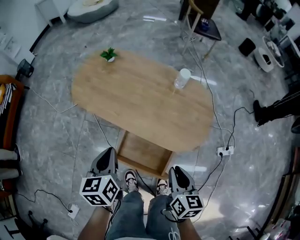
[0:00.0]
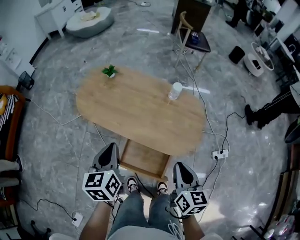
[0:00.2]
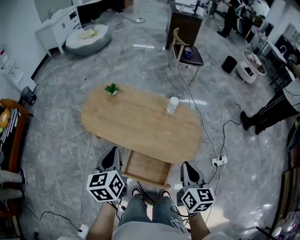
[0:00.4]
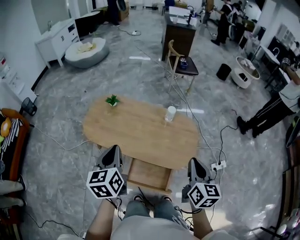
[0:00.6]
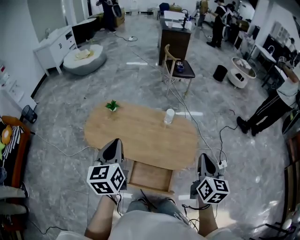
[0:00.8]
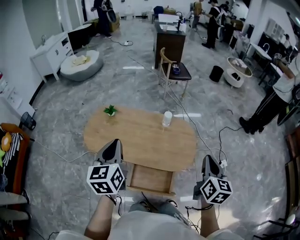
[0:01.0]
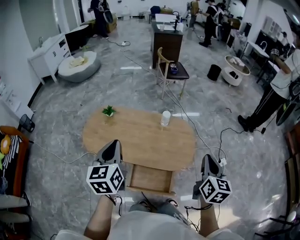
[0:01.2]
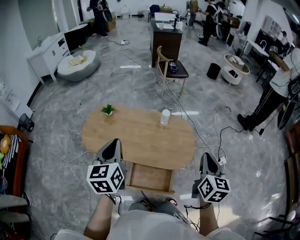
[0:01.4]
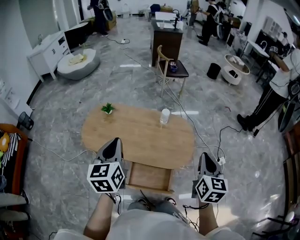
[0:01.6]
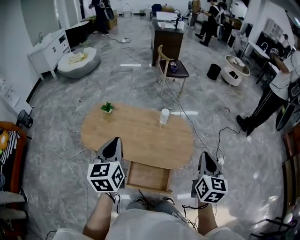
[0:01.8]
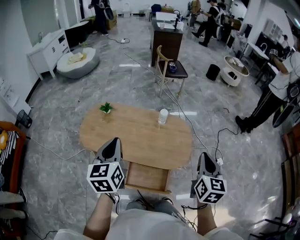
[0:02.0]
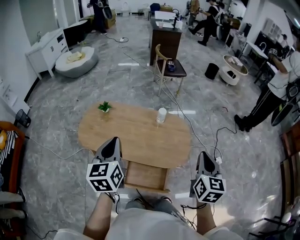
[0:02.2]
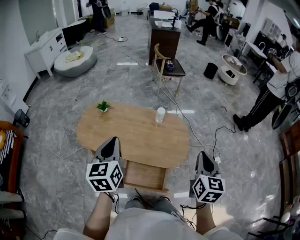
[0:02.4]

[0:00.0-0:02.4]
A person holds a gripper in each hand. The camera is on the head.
0:00.0 to 0:01.2: The grippers both shift upward by approximately 25 cm. The right gripper changes its angle by some 30 degrees, while the left gripper changes its angle by some 30 degrees.
0:01.2 to 0:02.4: There are only small adjustments of the grippers.

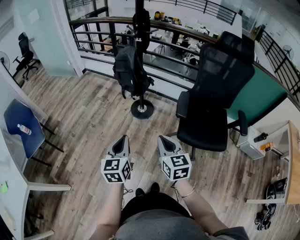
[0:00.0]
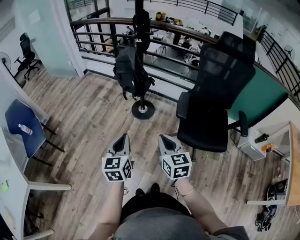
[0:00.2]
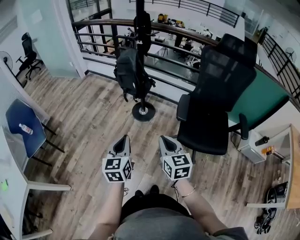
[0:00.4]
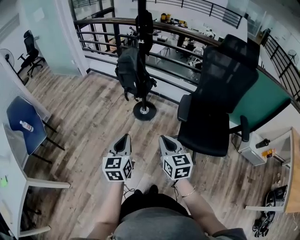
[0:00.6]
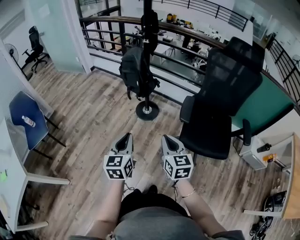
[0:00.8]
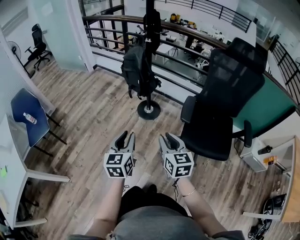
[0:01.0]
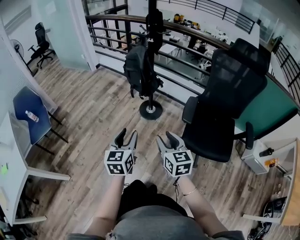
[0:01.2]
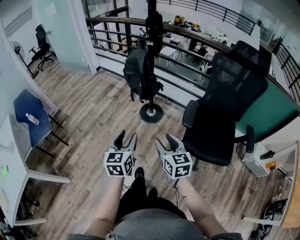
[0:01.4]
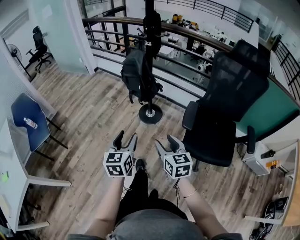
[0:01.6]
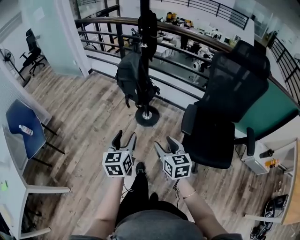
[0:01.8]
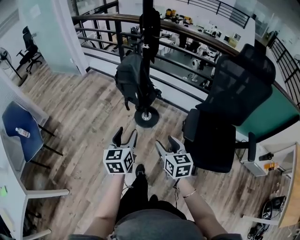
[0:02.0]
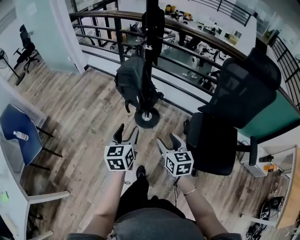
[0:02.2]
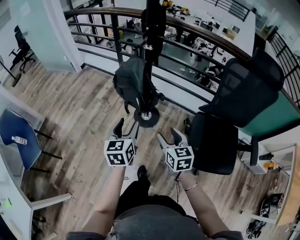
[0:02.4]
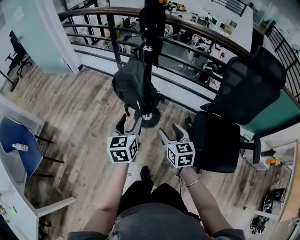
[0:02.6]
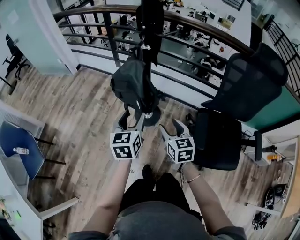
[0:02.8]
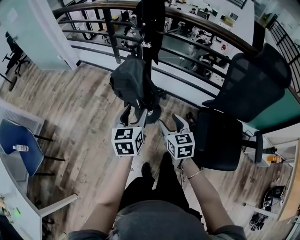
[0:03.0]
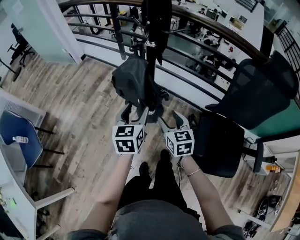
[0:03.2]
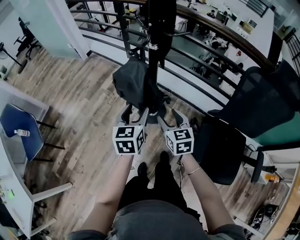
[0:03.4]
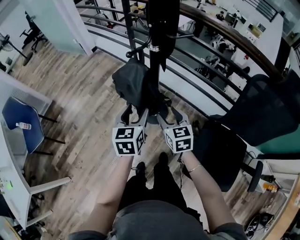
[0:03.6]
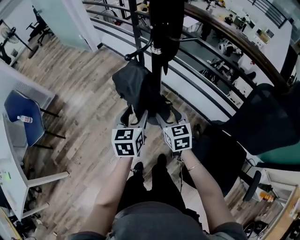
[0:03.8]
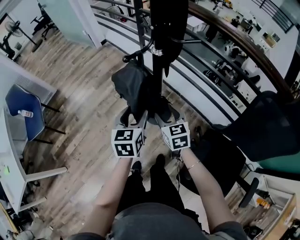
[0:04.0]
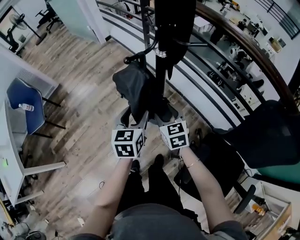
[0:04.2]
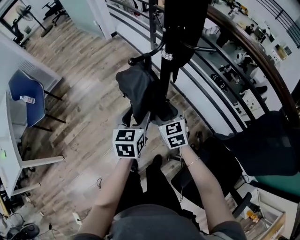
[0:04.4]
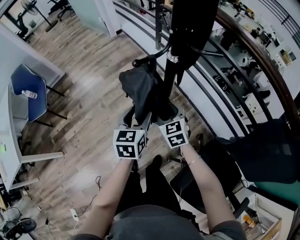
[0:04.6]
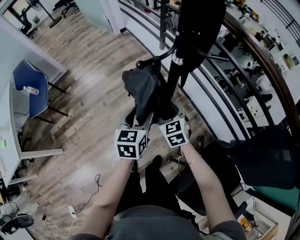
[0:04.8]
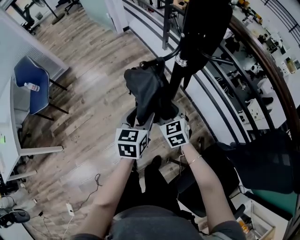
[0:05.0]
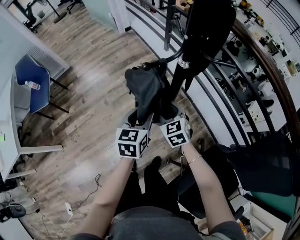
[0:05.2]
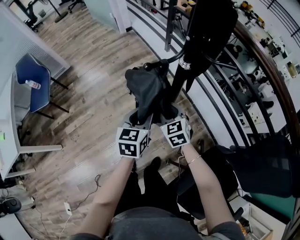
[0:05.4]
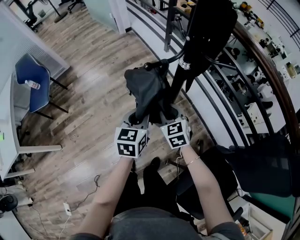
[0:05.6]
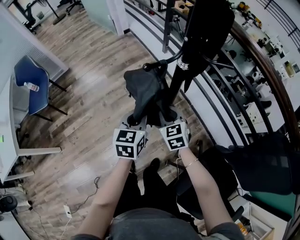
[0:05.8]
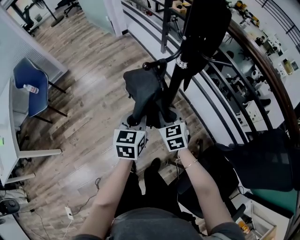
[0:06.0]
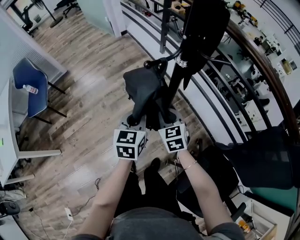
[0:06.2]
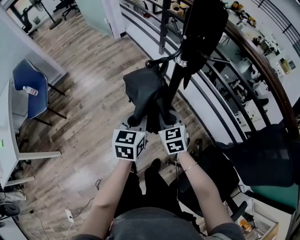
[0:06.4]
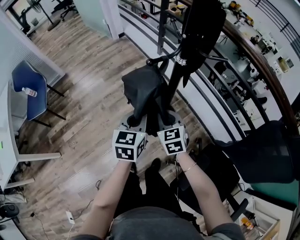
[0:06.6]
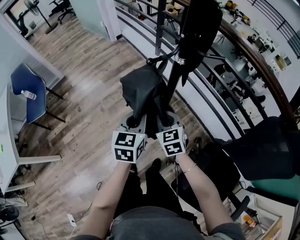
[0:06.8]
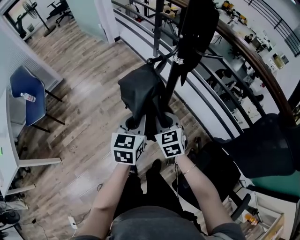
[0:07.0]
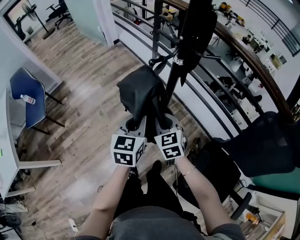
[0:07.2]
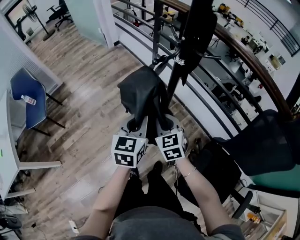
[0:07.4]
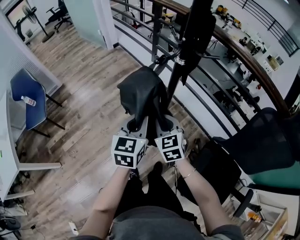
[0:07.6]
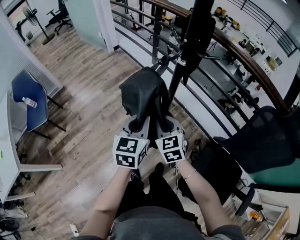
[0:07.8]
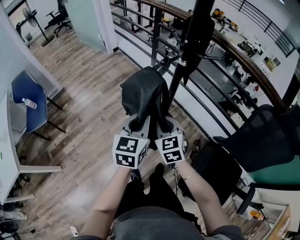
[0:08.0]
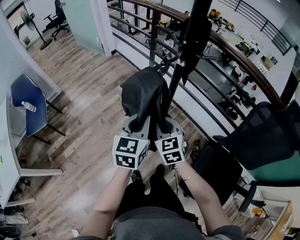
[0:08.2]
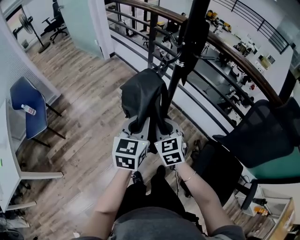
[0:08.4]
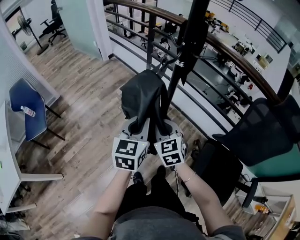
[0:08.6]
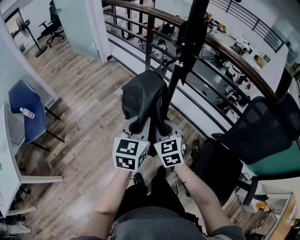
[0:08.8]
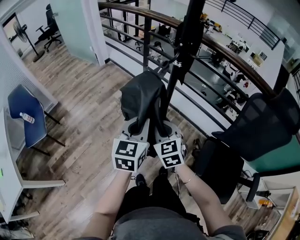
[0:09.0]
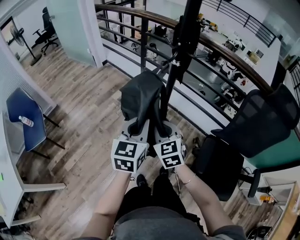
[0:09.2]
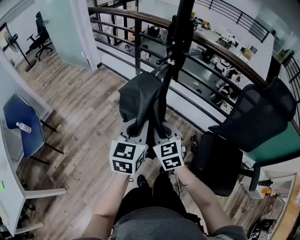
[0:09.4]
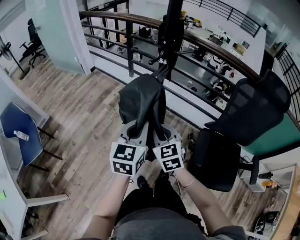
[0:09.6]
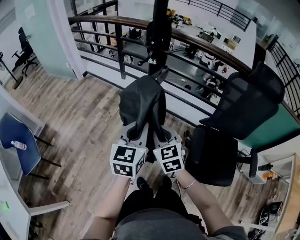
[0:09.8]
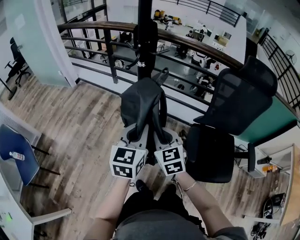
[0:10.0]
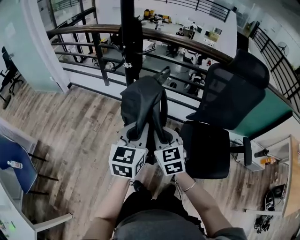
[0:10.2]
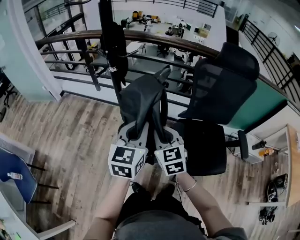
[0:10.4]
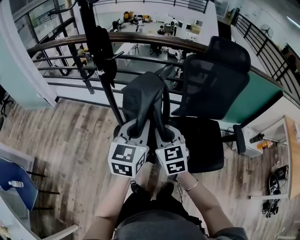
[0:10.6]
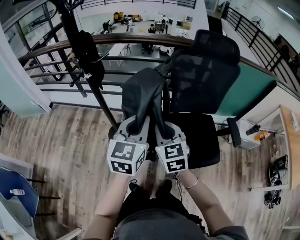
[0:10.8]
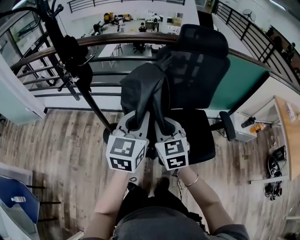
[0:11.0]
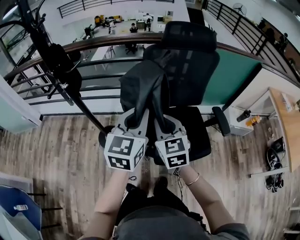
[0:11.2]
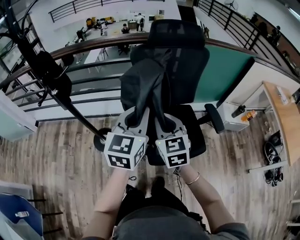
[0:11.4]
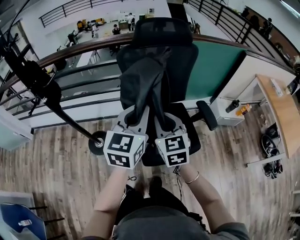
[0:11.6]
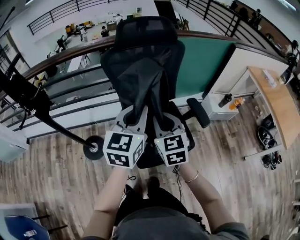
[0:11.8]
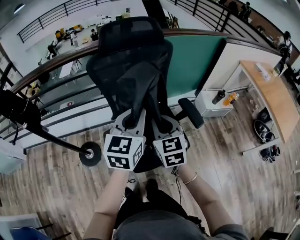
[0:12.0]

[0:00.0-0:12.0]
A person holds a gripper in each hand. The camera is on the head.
0:00.0 to 0:01.6: Both grippers travel together forward, approximately 5 cm. The left gripper opens. The right gripper opens its fingers.
0:01.6 to 0:03.0: Both grippers travel together forward, some 30 cm.
0:03.0 to 0:04.4: The right gripper moves approximately 20 cm, and changes its angle by roughly 40 degrees. Meanwhile the left gripper ends up about 10 cm from where it was, and swivels some 20 degrees.
0:04.4 to 0:06.0: The right gripper closes up. The left gripper closes its fingers.
0:06.0 to 0:07.6: The right gripper travels backward and upward by some 10 cm; the left gripper travels upward and backward by roughly 10 cm.
0:07.6 to 0:09.0: The left gripper moves about 10 cm, while the right gripper shifts roughly 5 cm backward.
0:09.0 to 0:10.4: The left gripper ends up some 20 cm from where it was, and rotates roughly 30 degrees. The right gripper shifts by approximately 20 cm, and changes its angle by roughly 30 degrees.
0:10.4 to 0:12.0: The left gripper changes place by roughly 40 cm, and rotates approximately 30 degrees; the right gripper ends up about 40 cm from where it was, and rotates approximately 30 degrees.

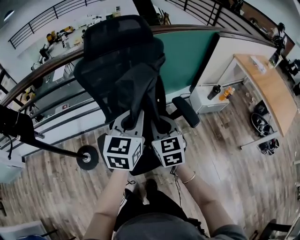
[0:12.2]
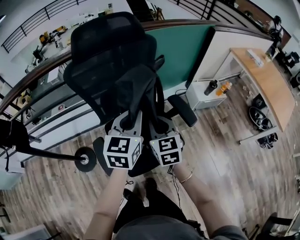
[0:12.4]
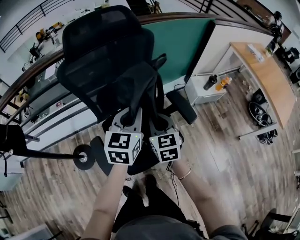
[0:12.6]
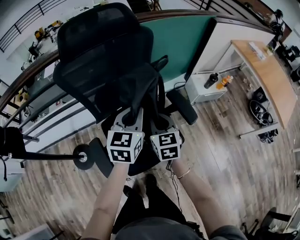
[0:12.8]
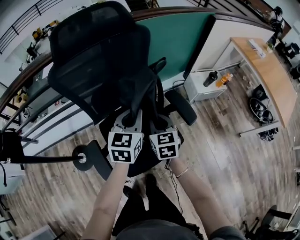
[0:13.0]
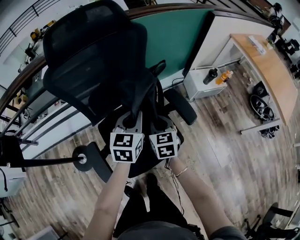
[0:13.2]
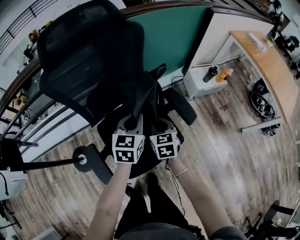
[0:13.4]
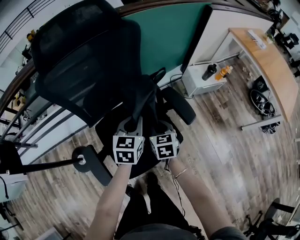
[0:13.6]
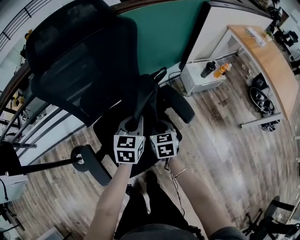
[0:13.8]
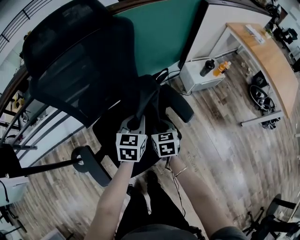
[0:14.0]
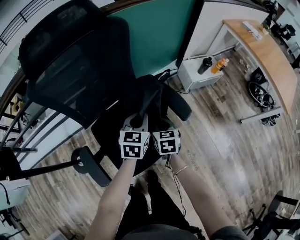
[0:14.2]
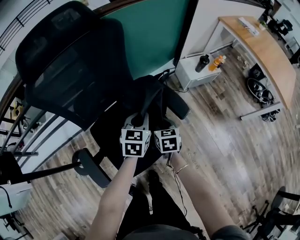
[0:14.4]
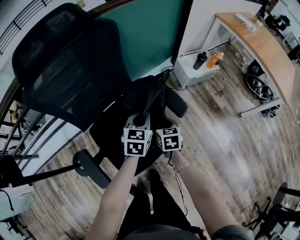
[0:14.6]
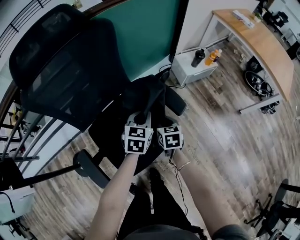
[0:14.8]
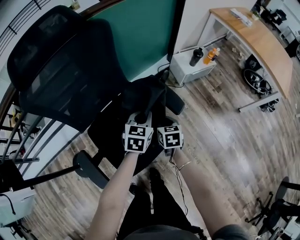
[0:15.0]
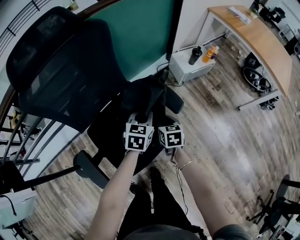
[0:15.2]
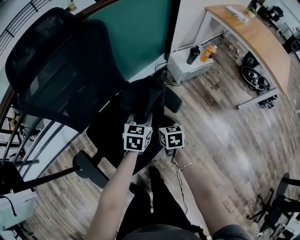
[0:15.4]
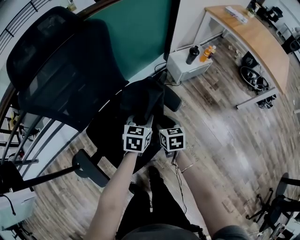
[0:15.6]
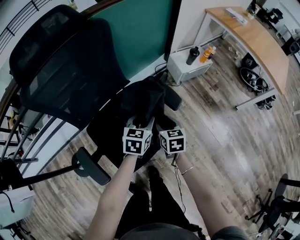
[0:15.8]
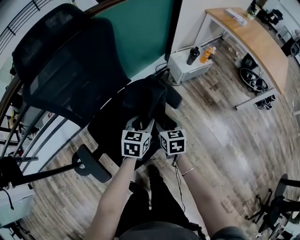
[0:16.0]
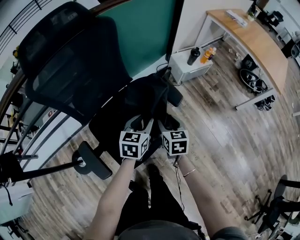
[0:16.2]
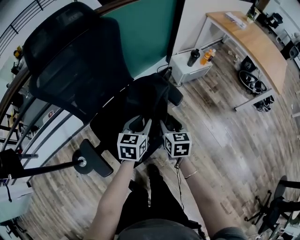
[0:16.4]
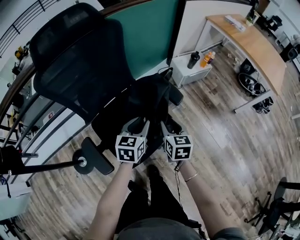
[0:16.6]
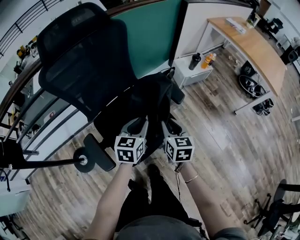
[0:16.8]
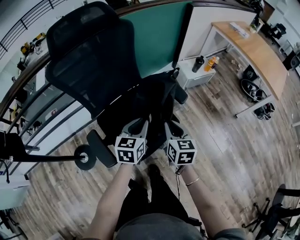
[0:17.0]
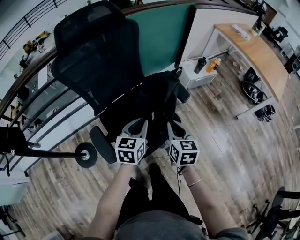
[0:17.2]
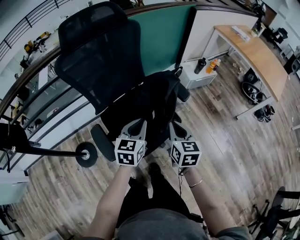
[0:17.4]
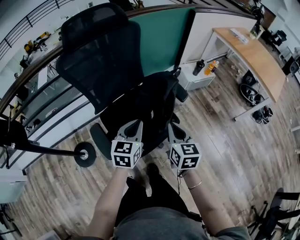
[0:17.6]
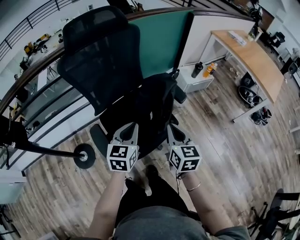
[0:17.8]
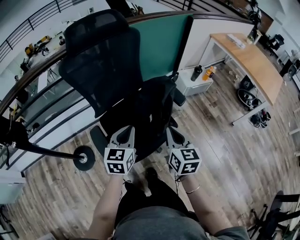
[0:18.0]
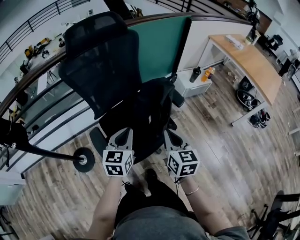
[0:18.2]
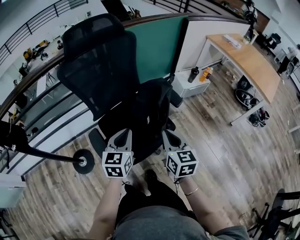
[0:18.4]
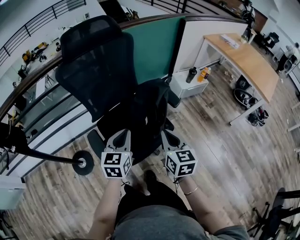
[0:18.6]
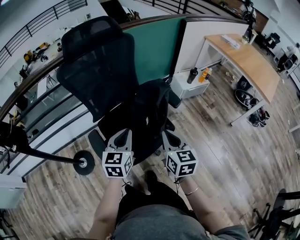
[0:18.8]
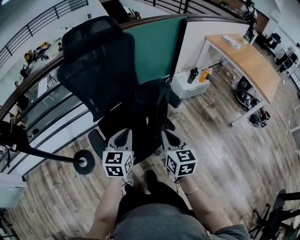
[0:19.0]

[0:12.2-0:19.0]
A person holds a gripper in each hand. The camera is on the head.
0:12.2 to 0:13.6: The right gripper is displaced downward by roughly 20 cm, and changes its angle by roughly 20 degrees. The left gripper heads downward and forward, covering about 20 cm.
0:13.6 to 0:15.0: Both grippers move to the right and downward, approximately 10 cm.
0:15.0 to 0:16.2: The left gripper travels backward by approximately 10 cm, and opens up; the right gripper moves upward and backward, about 10 cm, and opens.
0:16.2 to 0:17.6: The right gripper goes some 20 cm upward and backward, and closes its fingers. Meanwhile the left gripper travels backward, upward and to the left by approximately 15 cm, and closes its fingers.
0:17.6 to 0:19.0: There are only small adjustments of the grippers.

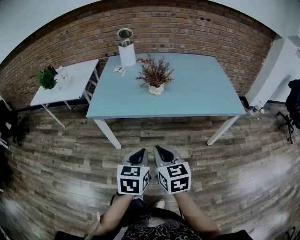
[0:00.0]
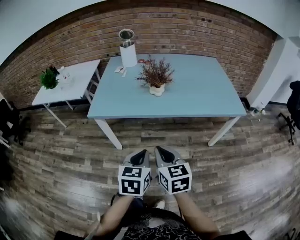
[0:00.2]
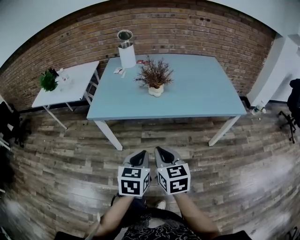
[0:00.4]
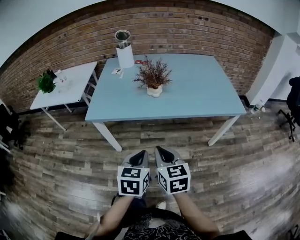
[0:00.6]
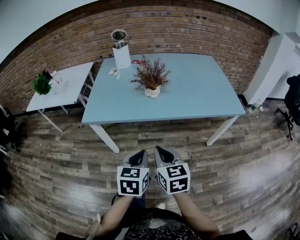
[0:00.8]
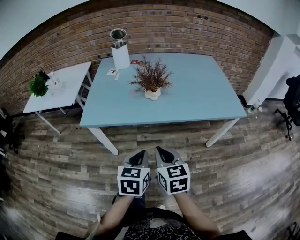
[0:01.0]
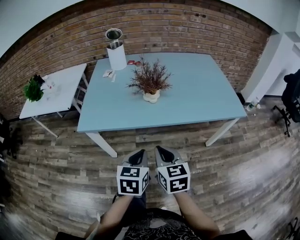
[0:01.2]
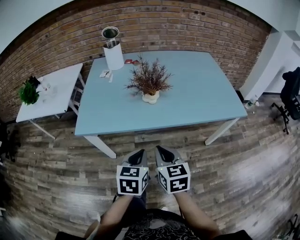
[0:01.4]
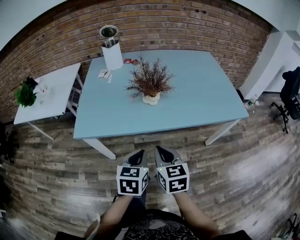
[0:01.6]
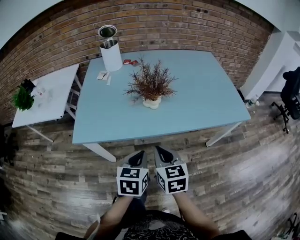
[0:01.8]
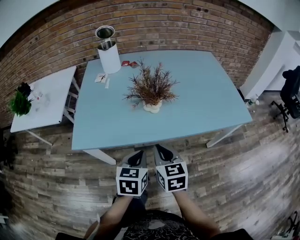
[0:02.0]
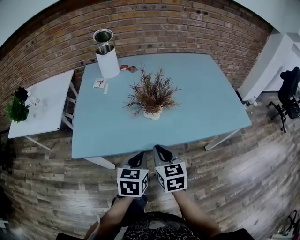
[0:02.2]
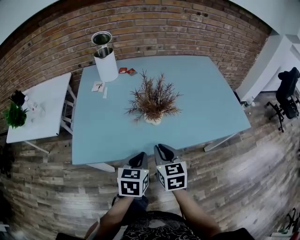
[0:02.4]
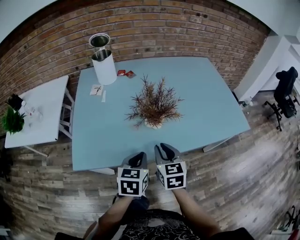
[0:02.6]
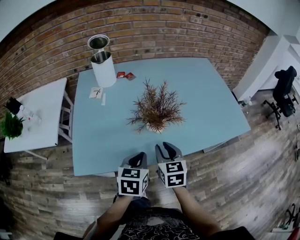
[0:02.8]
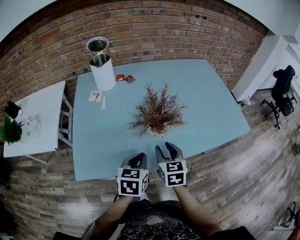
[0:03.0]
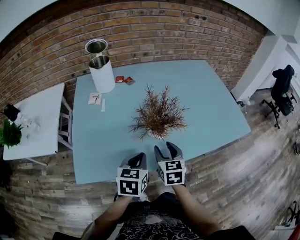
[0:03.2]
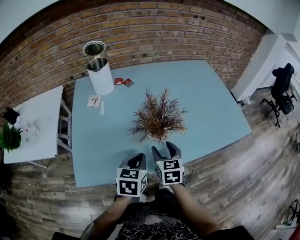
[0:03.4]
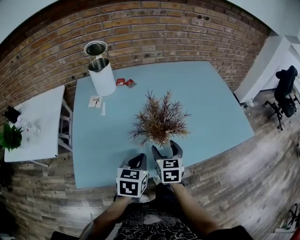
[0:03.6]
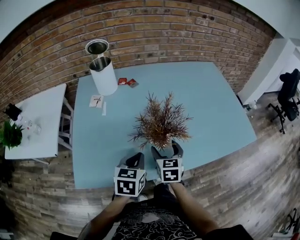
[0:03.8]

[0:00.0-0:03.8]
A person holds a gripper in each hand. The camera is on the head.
0:00.0 to 0:01.2: The grippers both shift forward by about 10 cm.
0:01.2 to 0:02.6: Both grippers travel together forward, some 20 cm.
0:02.6 to 0:03.8: The right gripper heads forward and downward, covering approximately 15 cm, and opens its fingers; the left gripper goes about 10 cm forward.
